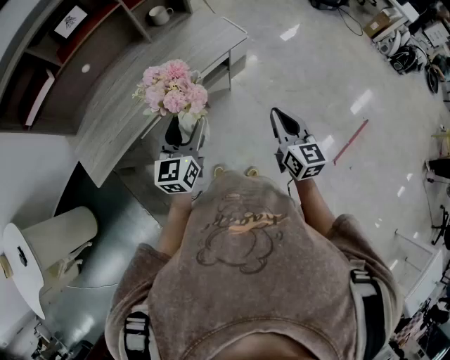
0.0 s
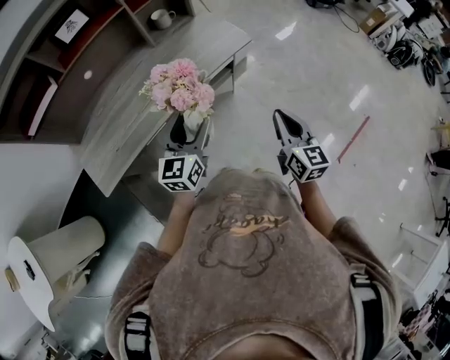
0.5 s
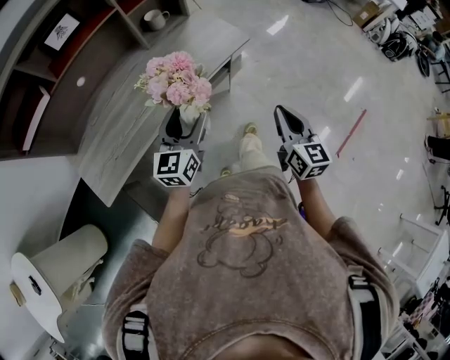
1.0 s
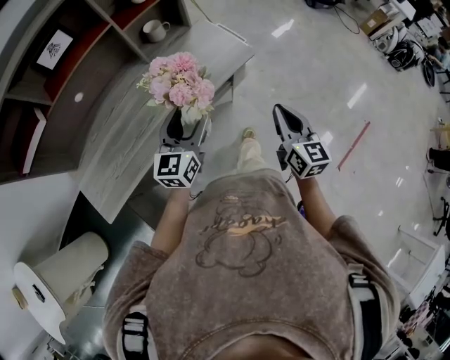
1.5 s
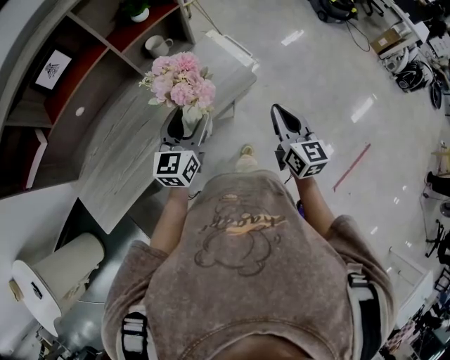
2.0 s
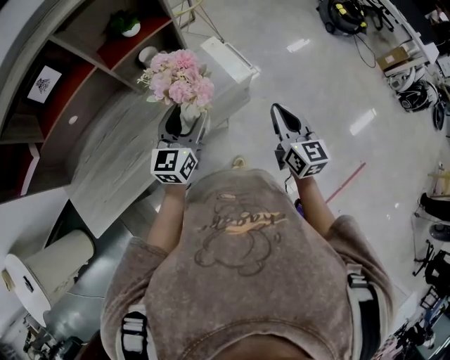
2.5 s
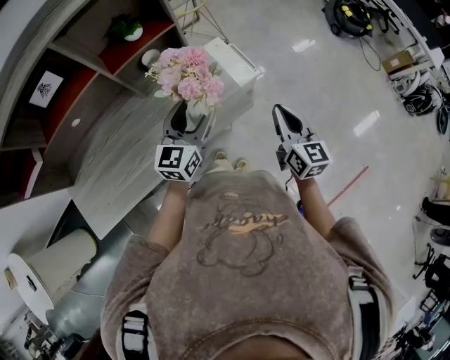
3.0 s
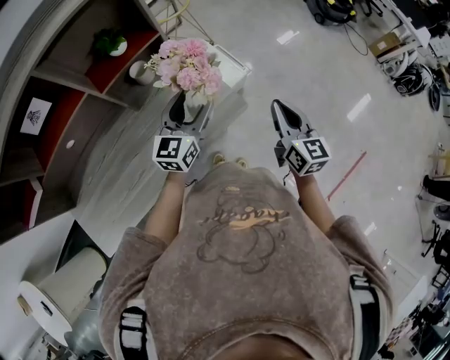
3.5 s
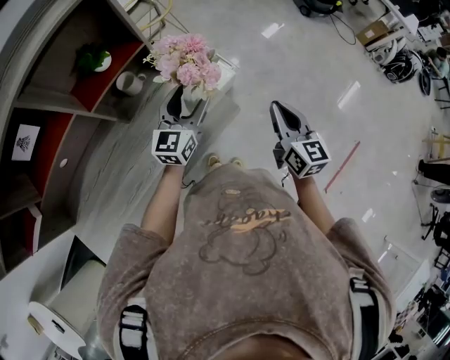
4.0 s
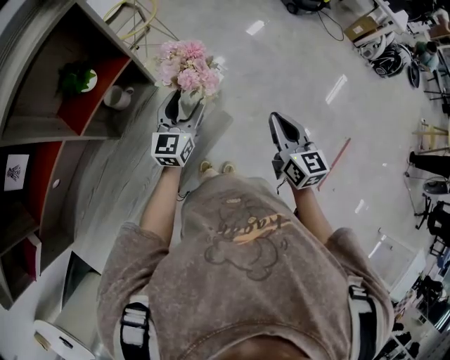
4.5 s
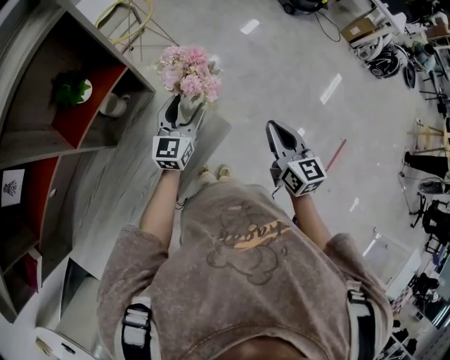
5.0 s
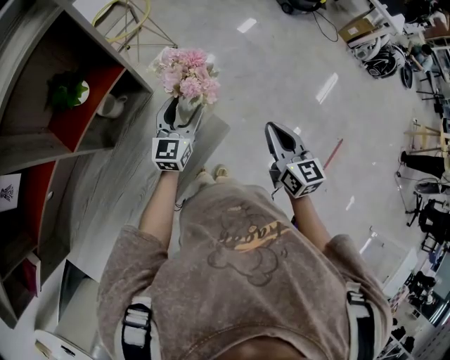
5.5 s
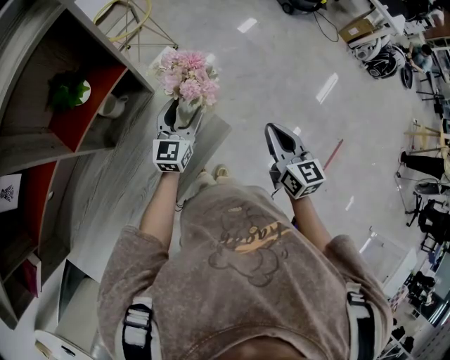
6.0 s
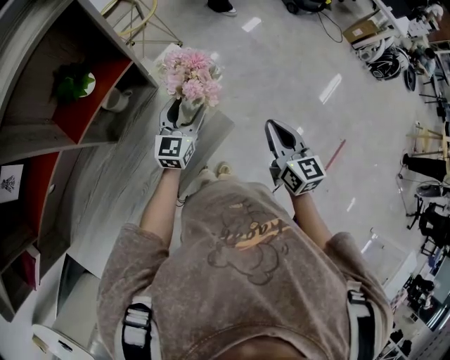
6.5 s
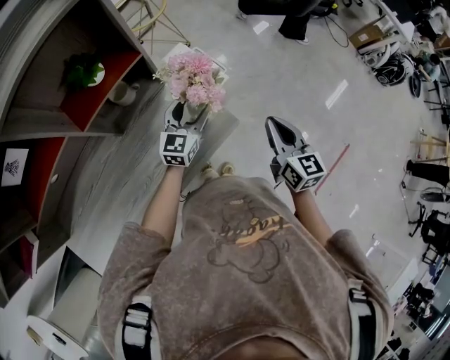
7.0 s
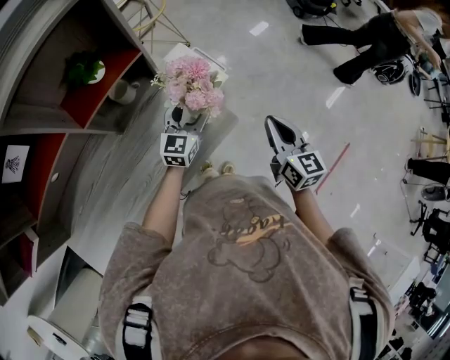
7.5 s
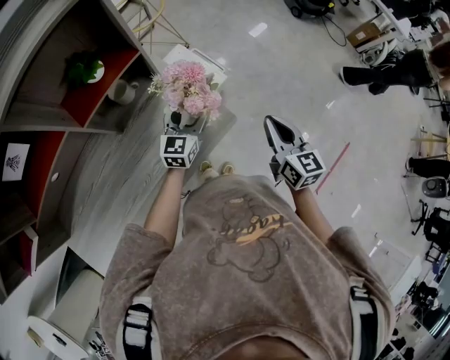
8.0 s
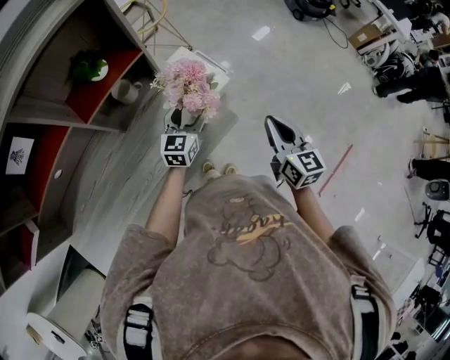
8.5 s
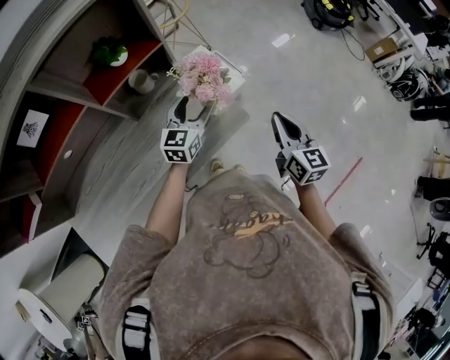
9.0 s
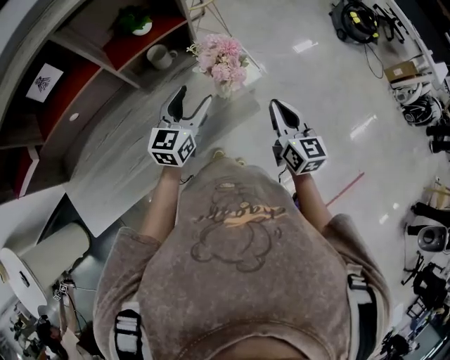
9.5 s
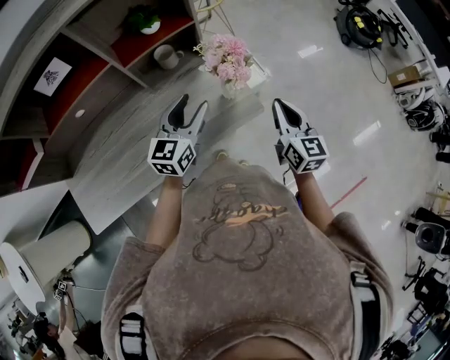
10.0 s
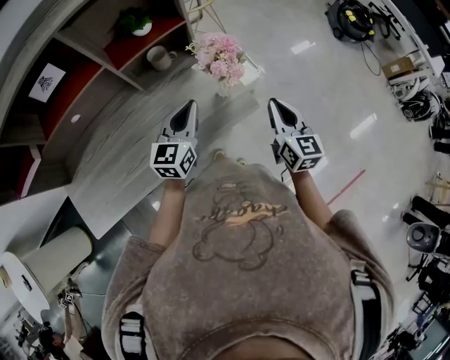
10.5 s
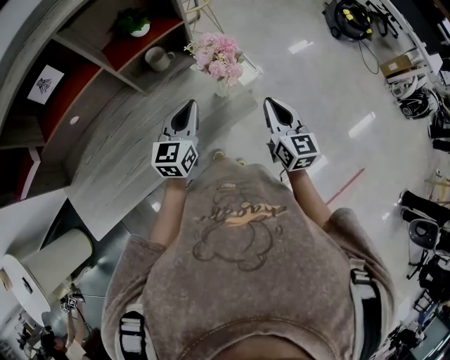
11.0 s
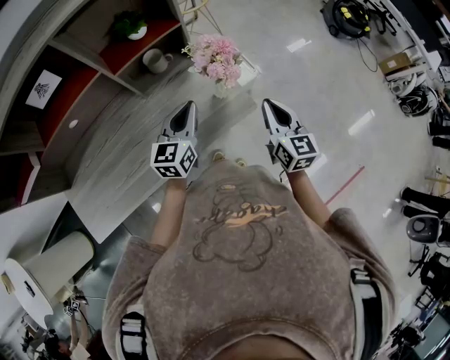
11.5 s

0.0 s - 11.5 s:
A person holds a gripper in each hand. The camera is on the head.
0.0 s - 2.0 s: Both grippers travel together forward, about 25 cm.
2.0 s - 4.0 s: The grippers both shift forward by some 20 cm.
4.0 s - 6.0 s: The left gripper travels downward by about 10 cm.
6.0 s - 7.5 s: There are only small adjustments of the grippers.
7.5 s - 9.5 s: The left gripper heads backward, upward and to the left, covering approximately 15 cm.
9.5 s - 11.5 s: The left gripper closes.

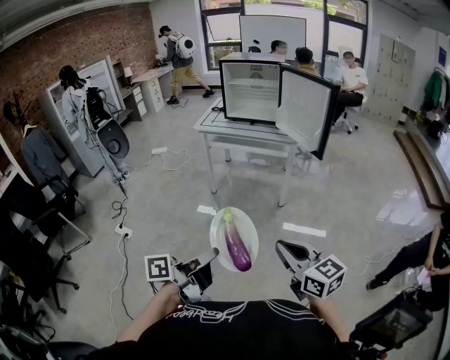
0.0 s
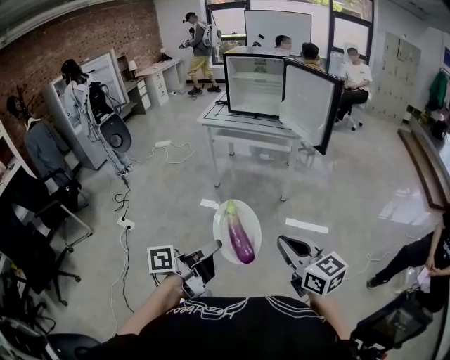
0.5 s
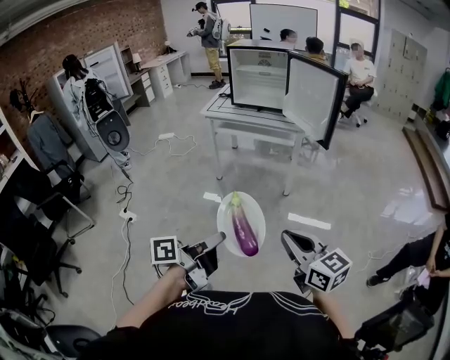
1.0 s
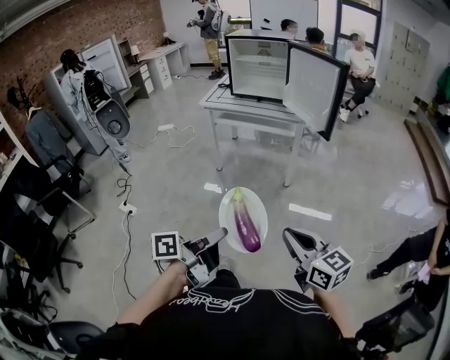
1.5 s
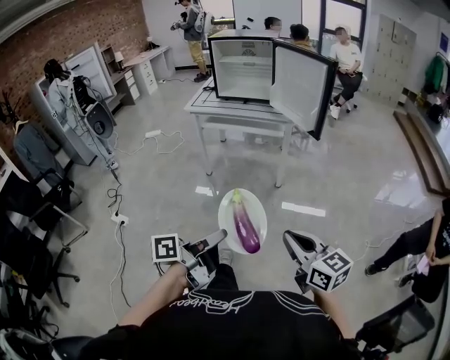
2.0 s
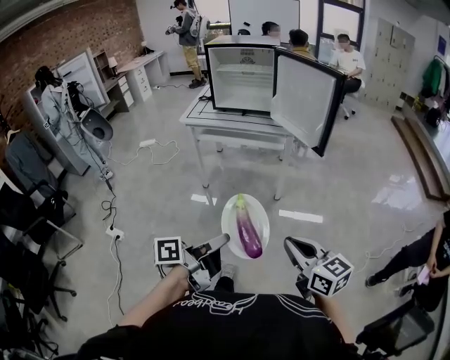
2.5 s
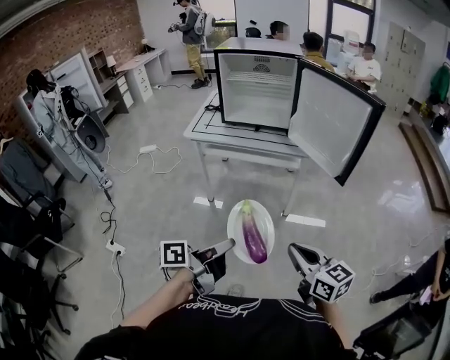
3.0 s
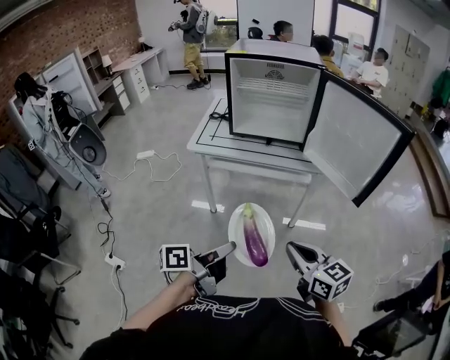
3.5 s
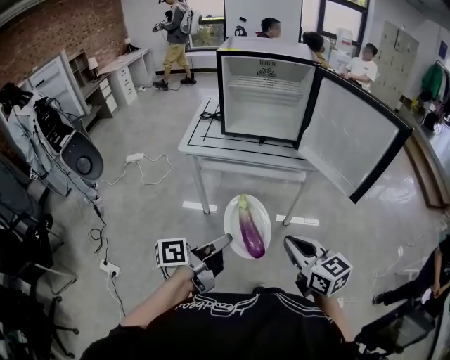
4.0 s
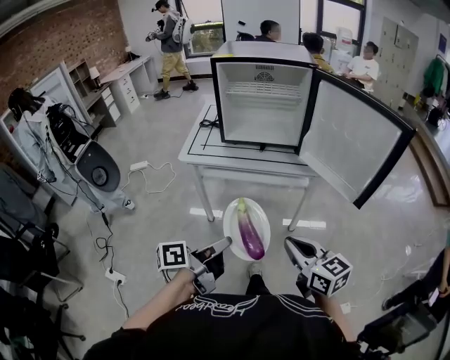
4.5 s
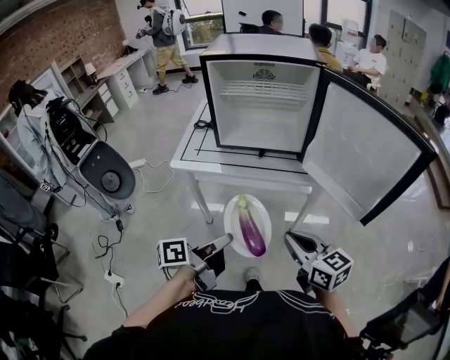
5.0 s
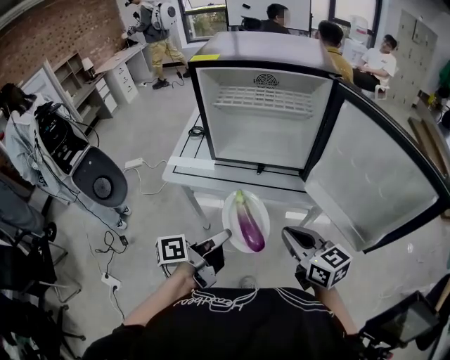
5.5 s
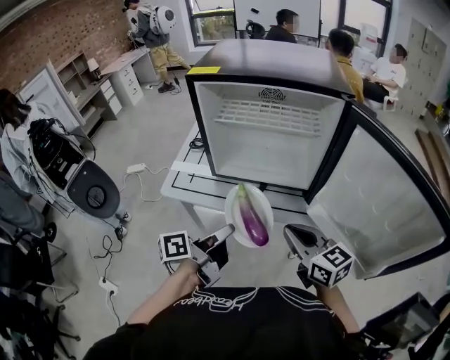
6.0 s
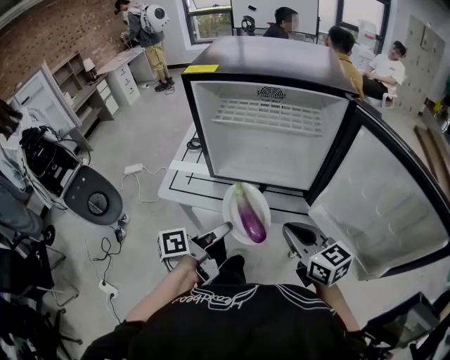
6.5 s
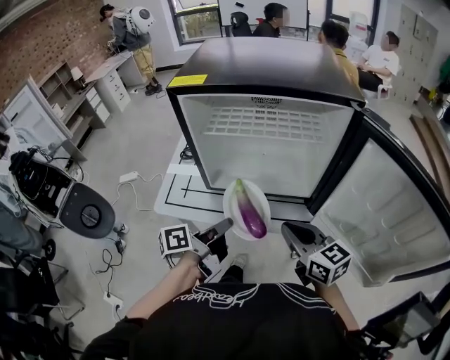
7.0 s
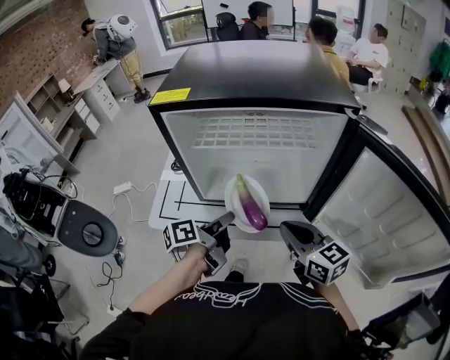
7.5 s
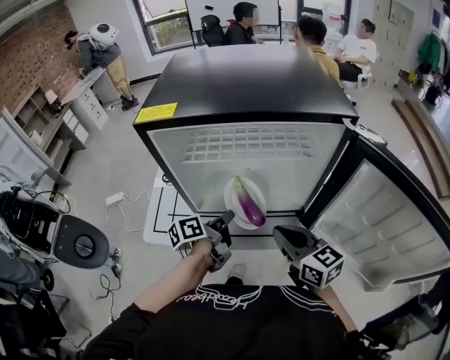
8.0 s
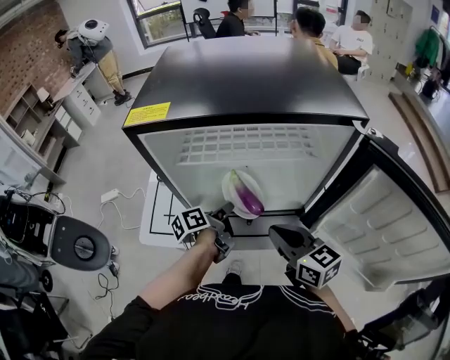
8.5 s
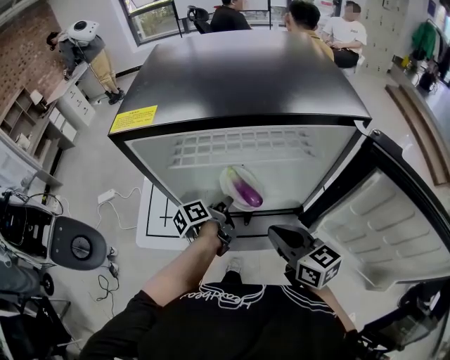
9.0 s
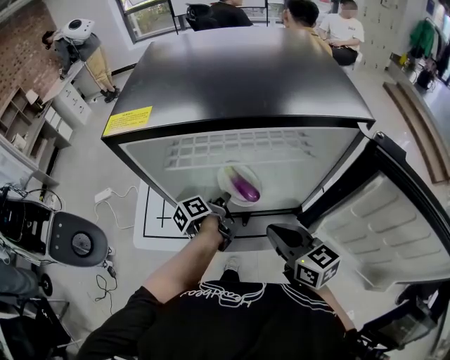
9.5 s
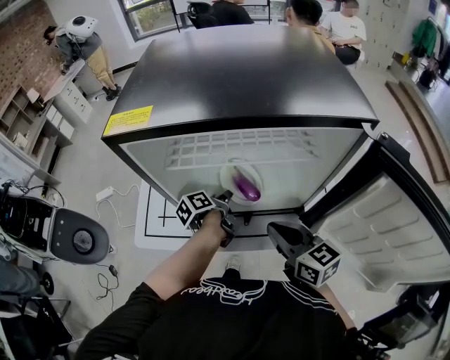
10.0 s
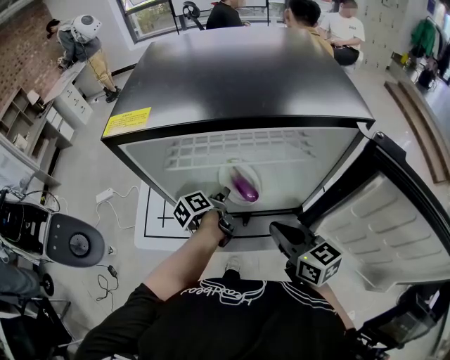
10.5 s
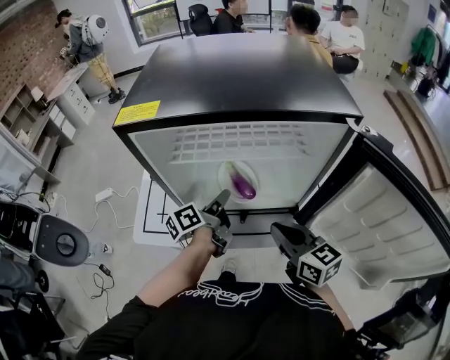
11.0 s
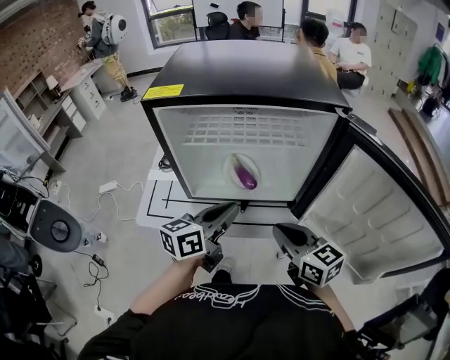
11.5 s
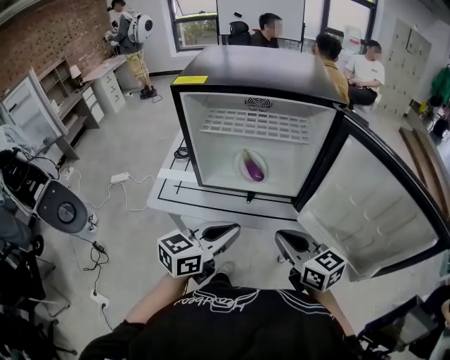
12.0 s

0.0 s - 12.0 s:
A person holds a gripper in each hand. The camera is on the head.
0.0 s - 2.0 s: The left gripper is displaced forward by roughly 5 cm. The right gripper shifts by some 5 cm.
2.0 s - 4.0 s: The pair of grippers is taken forward and to the left, about 50 cm.
4.0 s - 6.0 s: Both grippers travel together forward, approximately 35 cm.
6.0 s - 8.0 s: The left gripper heads forward, covering some 20 cm; the right gripper moves forward, approximately 15 cm.
8.0 s - 10.0 s: The left gripper travels forward and downward by roughly 10 cm.
10.0 s - 12.0 s: The right gripper travels backward by roughly 15 cm; the left gripper is displaced backward and upward by roughly 35 cm, and twists some 60 degrees clockwise, seen from behind.

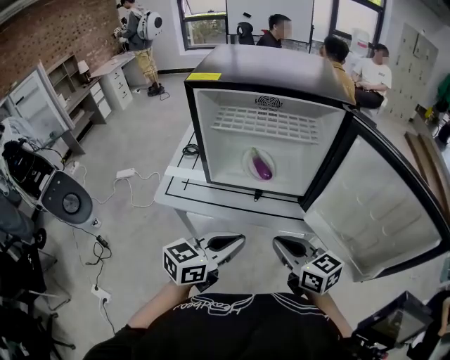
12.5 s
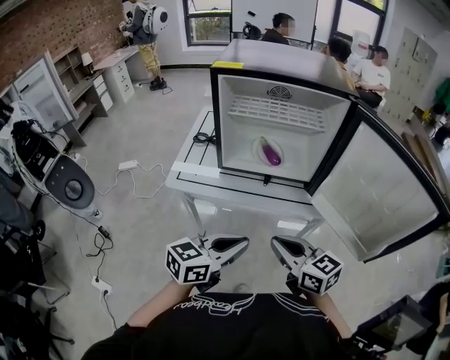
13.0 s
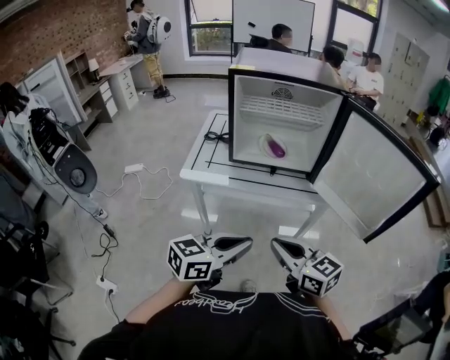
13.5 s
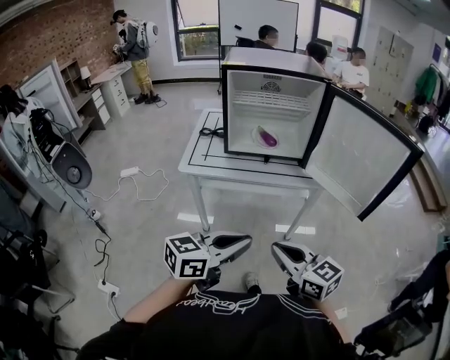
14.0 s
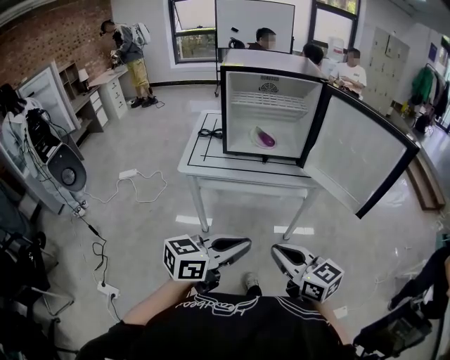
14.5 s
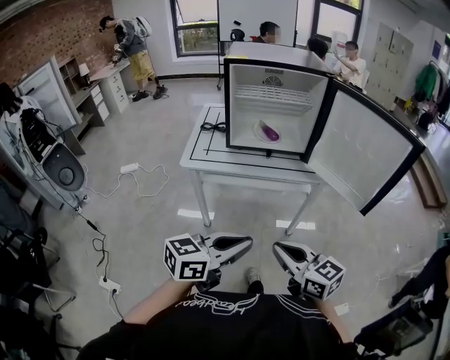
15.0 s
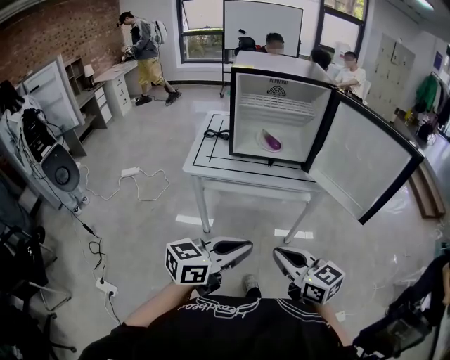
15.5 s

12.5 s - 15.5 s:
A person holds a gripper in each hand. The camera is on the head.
12.5 s - 14.0 s: The two grippers go about 30 cm backward.
14.0 s - 15.5 s: The grippers make only small movements.

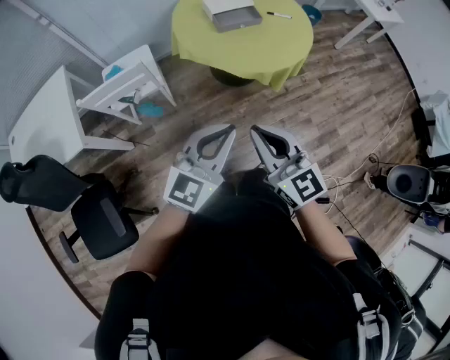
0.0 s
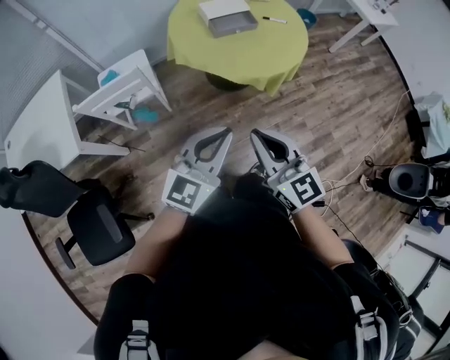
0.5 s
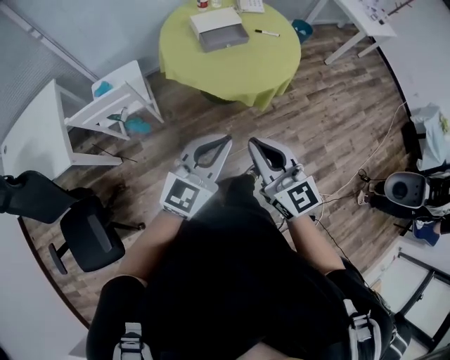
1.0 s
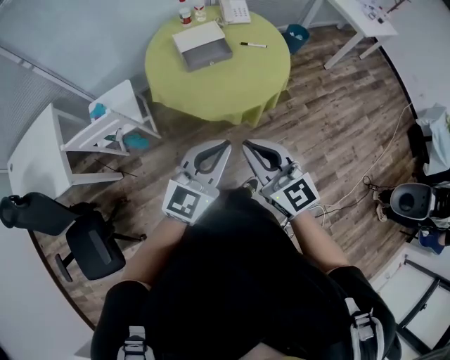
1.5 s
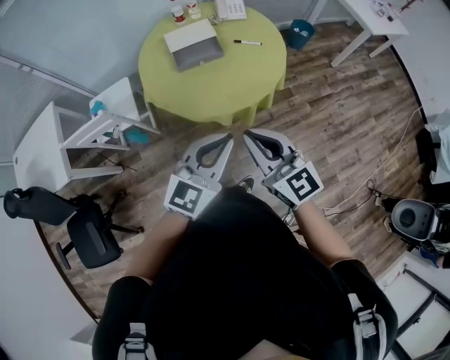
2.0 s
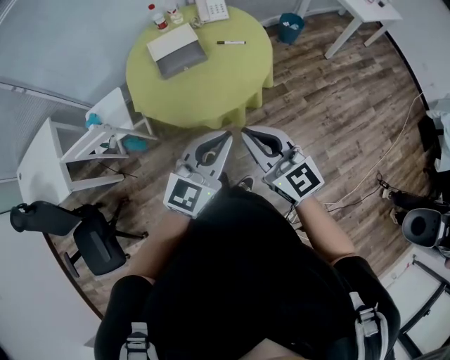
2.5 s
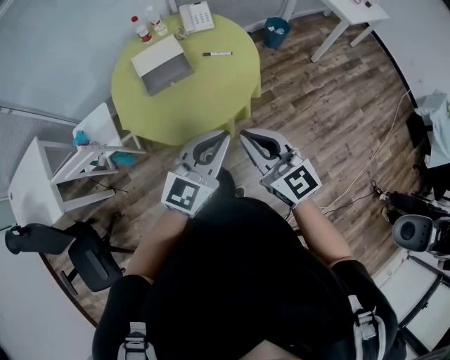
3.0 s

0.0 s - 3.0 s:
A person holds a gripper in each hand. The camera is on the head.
0.0 s - 1.5 s: The two grippers go some 20 cm to the right and forward.
1.5 s - 3.0 s: The two grippers go some 20 cm to the right and forward.
